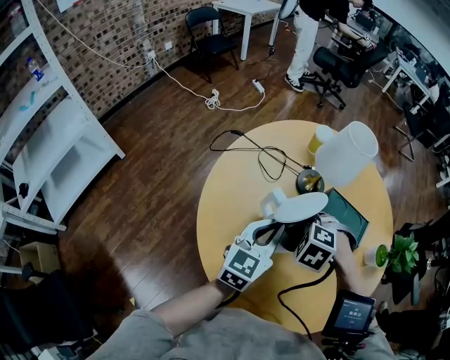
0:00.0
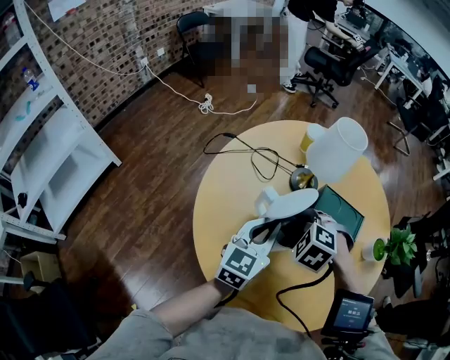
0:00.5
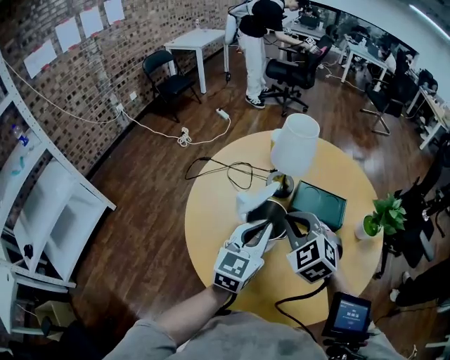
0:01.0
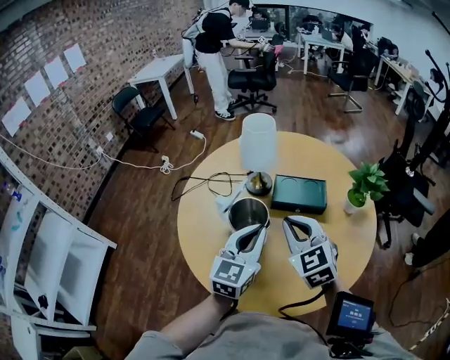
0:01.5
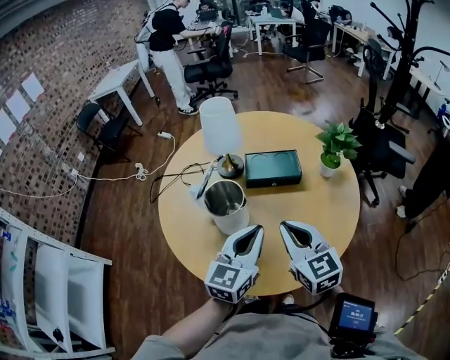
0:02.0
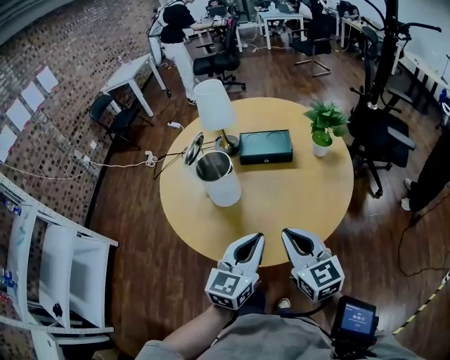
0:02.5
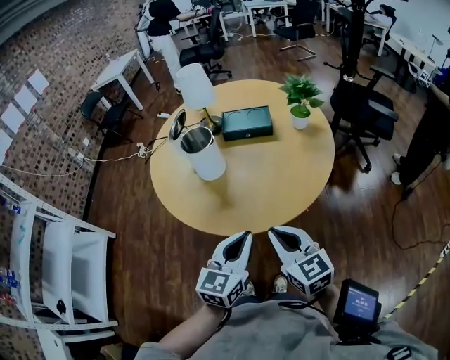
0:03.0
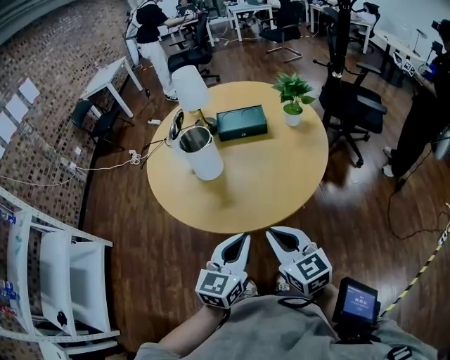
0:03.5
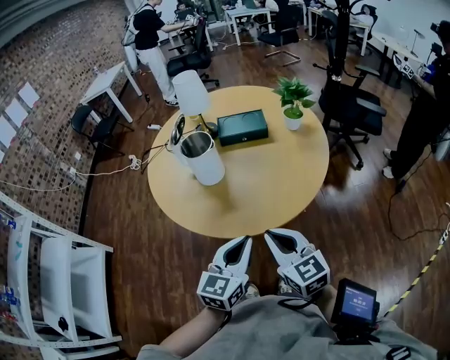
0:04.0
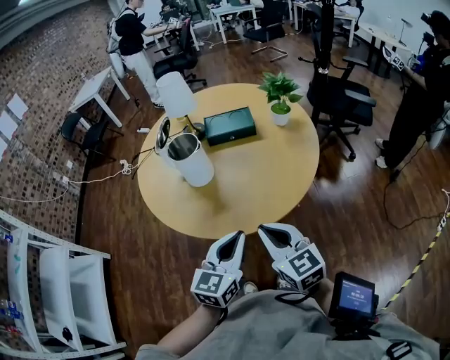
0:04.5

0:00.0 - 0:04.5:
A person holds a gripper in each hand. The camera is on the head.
0:00.0 - 0:02.0: The right gripper travels backward, upward and to the right by approximately 25 cm, points its fingers roughly 60 degrees further upward, and closes. The left gripper moves backward, to the right and upward, approximately 20 cm, and turns by about 30 degrees.
0:02.0 - 0:04.5: The grippers both shift backward by roughly 25 cm.

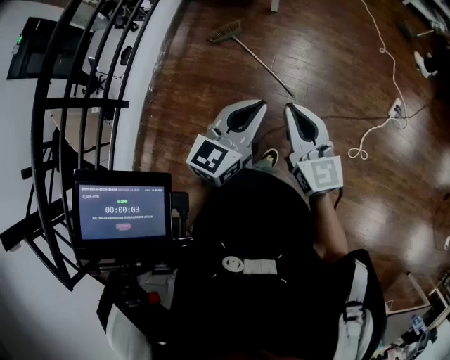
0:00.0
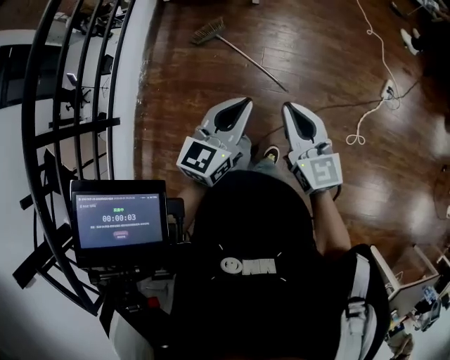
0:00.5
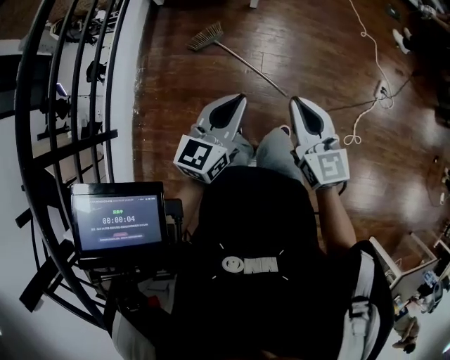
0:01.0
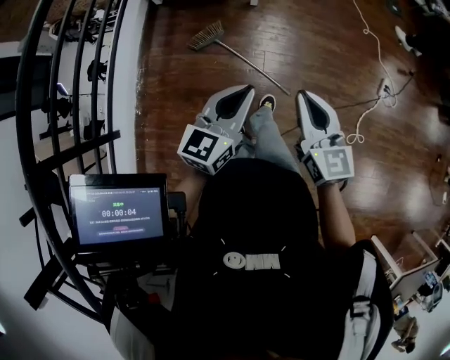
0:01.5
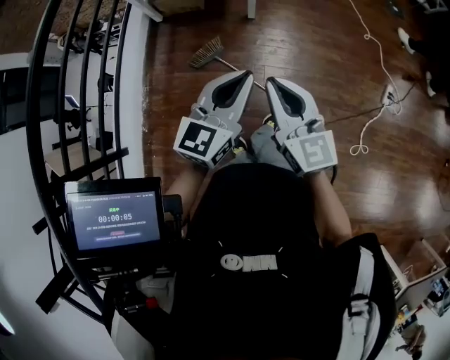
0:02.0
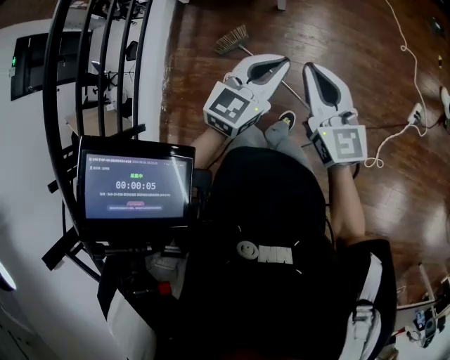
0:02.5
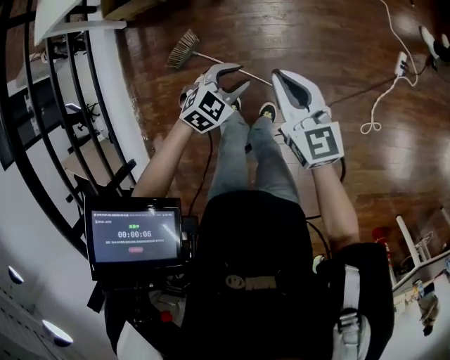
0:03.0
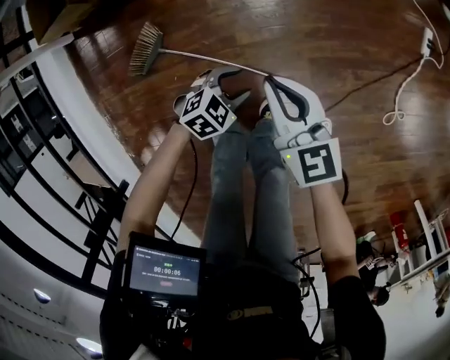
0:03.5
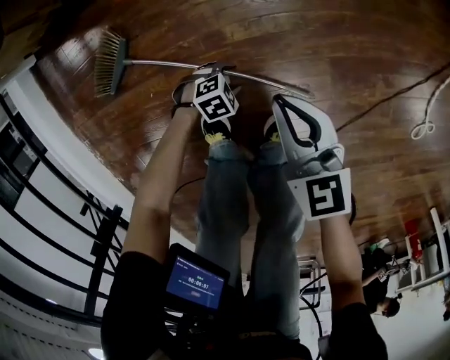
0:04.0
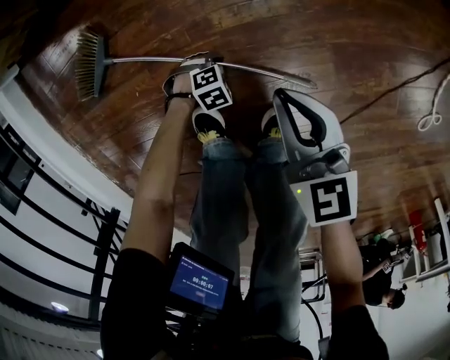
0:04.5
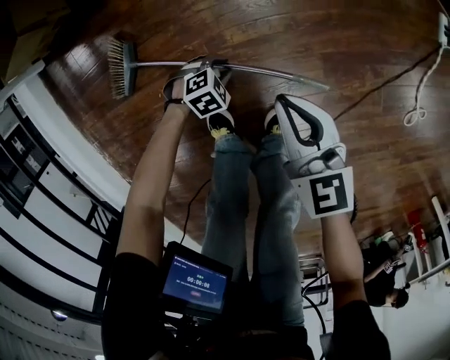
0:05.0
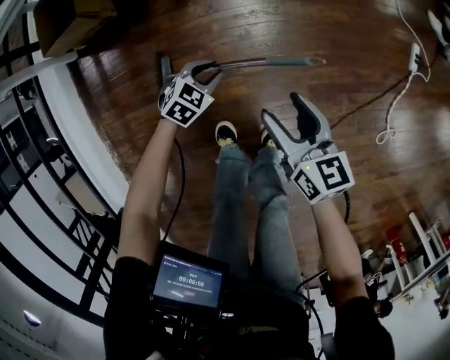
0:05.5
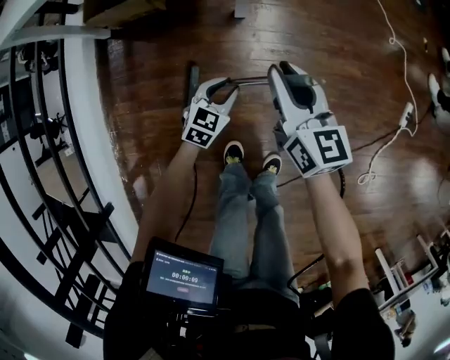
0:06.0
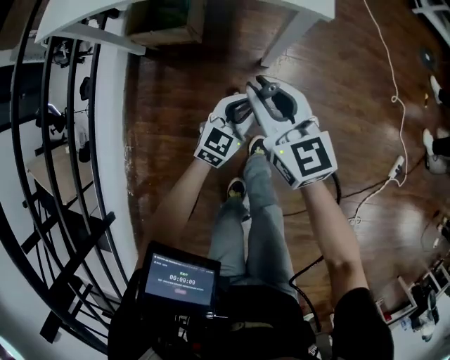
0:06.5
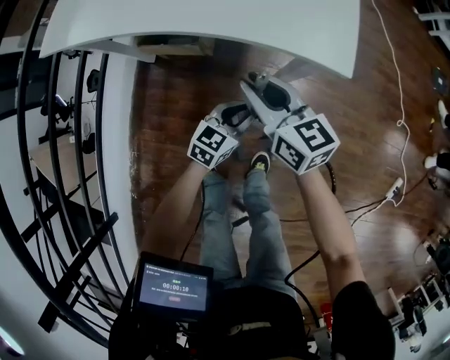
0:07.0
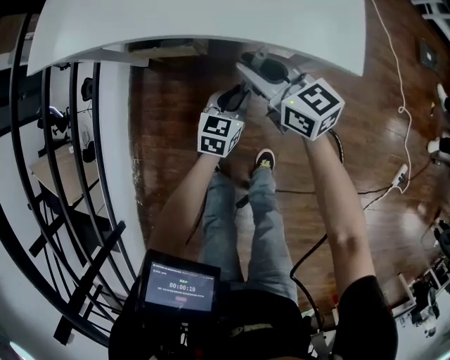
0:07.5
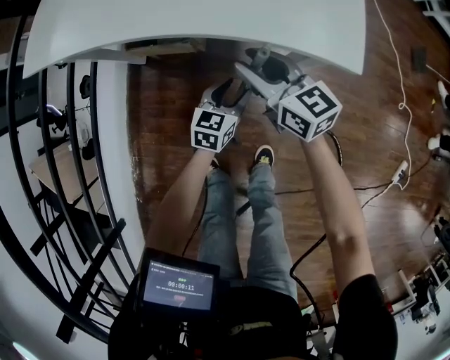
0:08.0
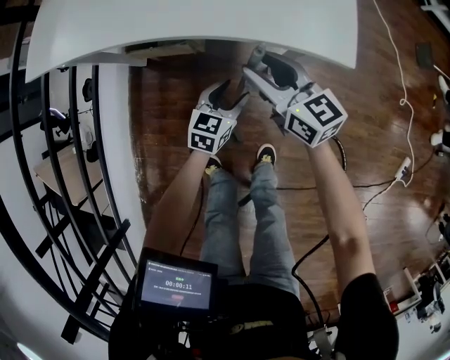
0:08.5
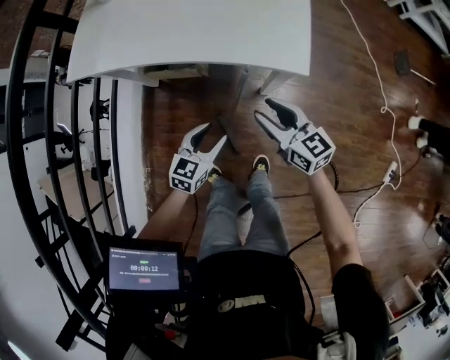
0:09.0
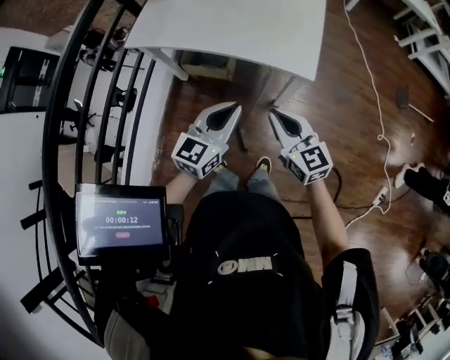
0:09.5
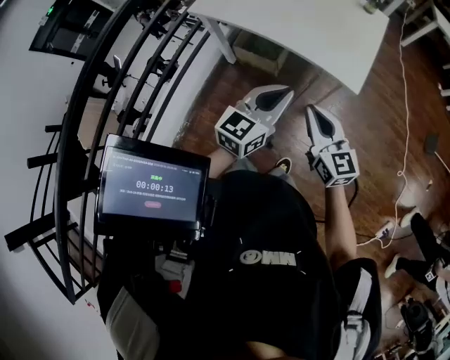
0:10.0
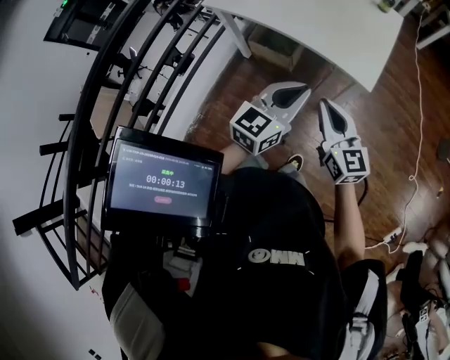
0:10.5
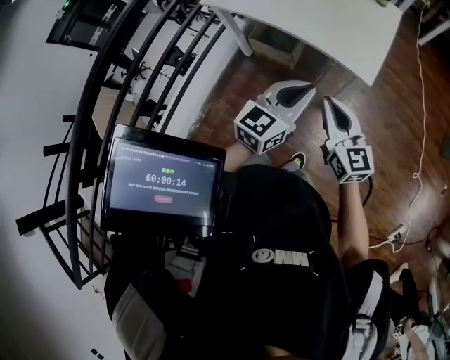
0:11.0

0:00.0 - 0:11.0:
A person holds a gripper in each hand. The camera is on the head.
0:00.0 - 0:02.0: The left gripper is displaced forward by roughly 25 cm, while the right gripper moves forward and to the left, about 30 cm.
0:02.0 - 0:03.5: Both grippers move downward, roughly 50 cm. The right gripper rotates some 30 degrees. Meanwhile the left gripper tips its fingers downward by approximately 50 degrees, and opens.
0:03.5 - 0:05.5: The right gripper reaches roughly 25 cm downward, then returns, and opens. Meanwhile the left gripper goes downward and returns, some 40 cm each way, and closes.
0:05.5 - 0:07.5: The right gripper ends up roughly 50 cm from where it was, swivels roughly 40 degrees, and closes up; the left gripper changes place by about 40 cm, and swivels some 50 degrees.
0:07.5 - 0:09.0: The right gripper shifts about 15 cm backward, upward and to the right, and opens, while the left gripper travels upward, backward and to the left by approximately 20 cm, and opens its fingers.
0:09.0 - 0:11.0: The left gripper moves upward, approximately 25 cm, turns by approximately 30 degrees, and closes up. Meanwhile the right gripper goes approximately 20 cm upward, backward and to the left, and closes.

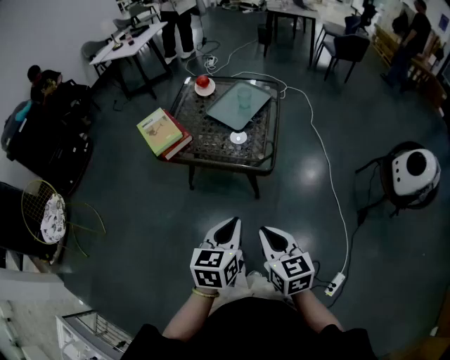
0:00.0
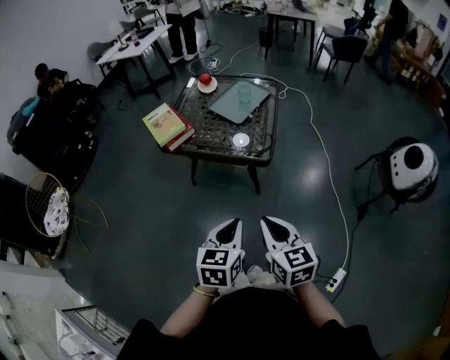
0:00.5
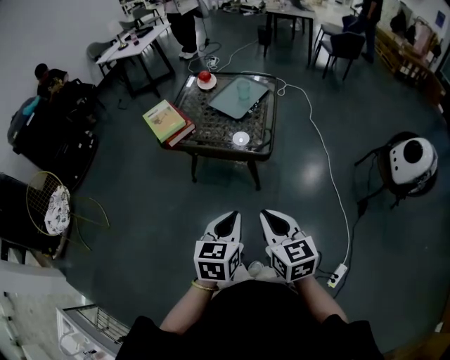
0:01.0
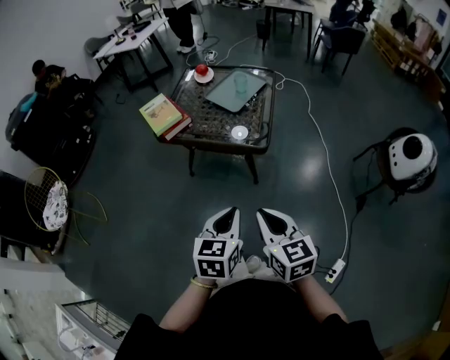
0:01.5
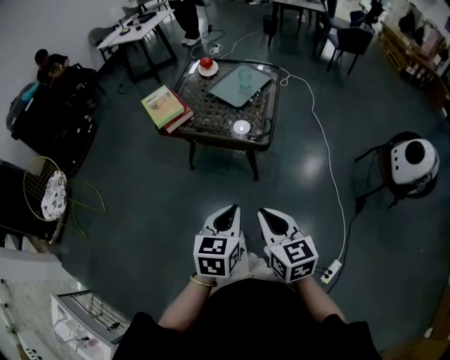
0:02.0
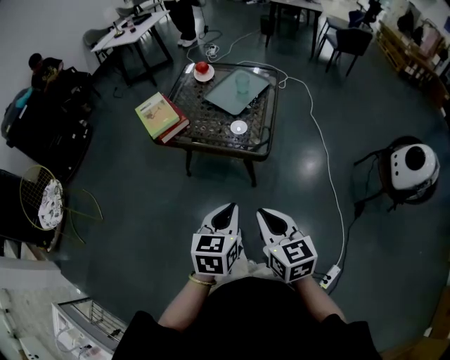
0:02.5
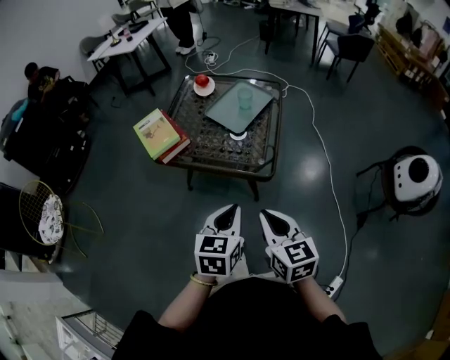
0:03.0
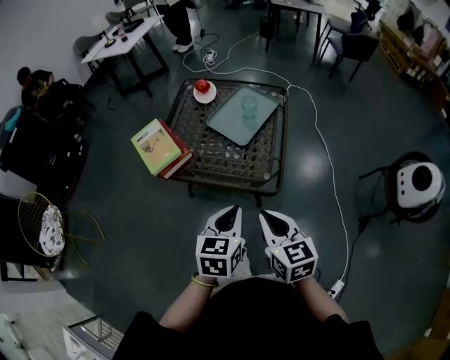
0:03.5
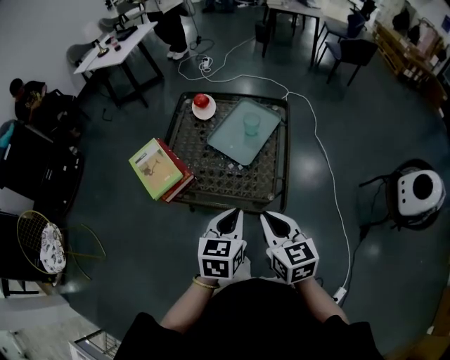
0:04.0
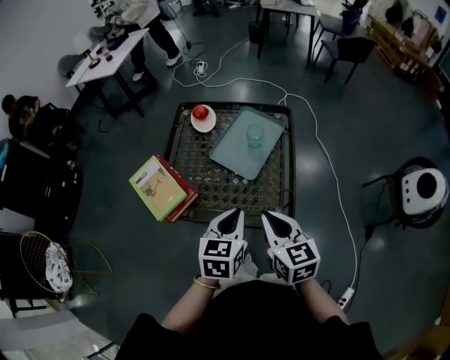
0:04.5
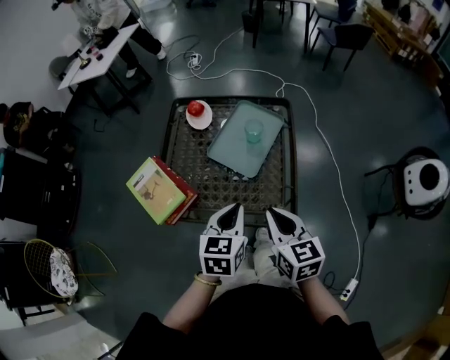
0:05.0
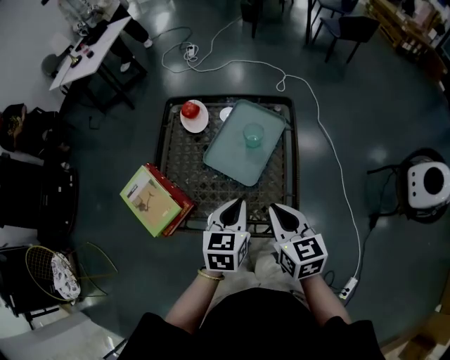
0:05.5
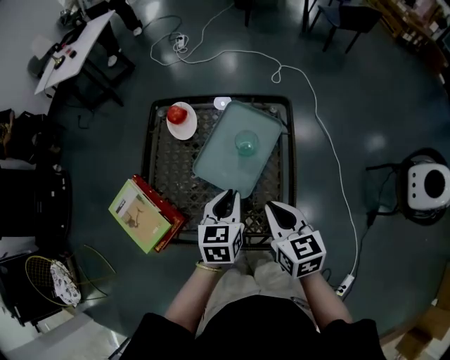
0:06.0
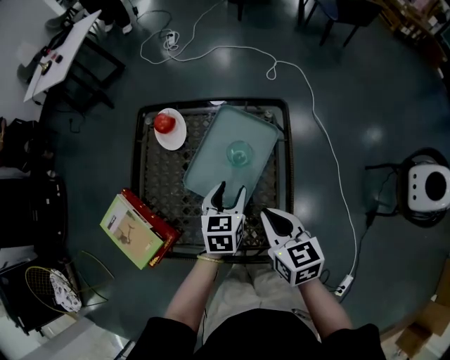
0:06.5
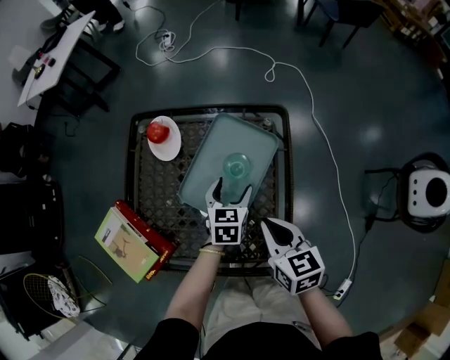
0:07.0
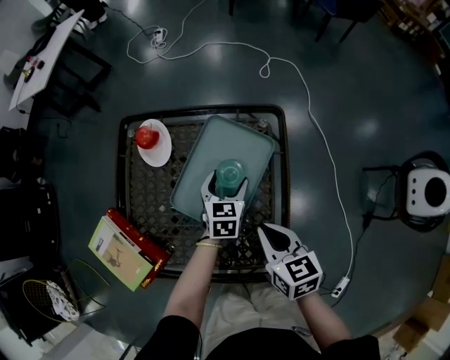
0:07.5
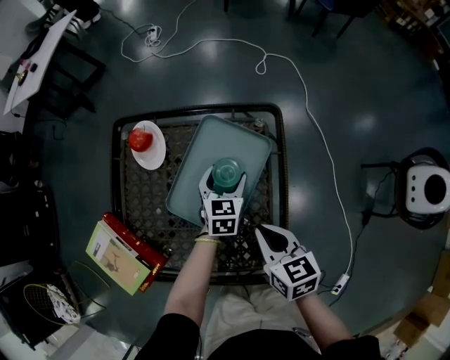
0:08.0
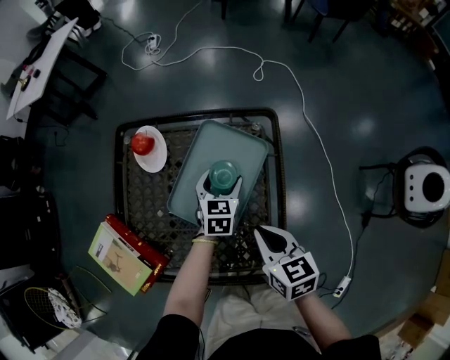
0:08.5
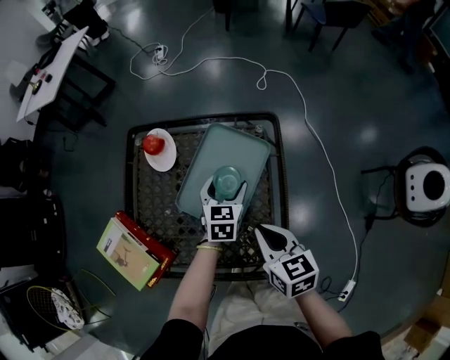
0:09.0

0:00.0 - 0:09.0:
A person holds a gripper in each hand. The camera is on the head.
0:00.0 - 0:02.0: The two grippers go about 10 cm backward.
0:02.0 - 0:04.5: The grippers both shift forward by roughly 40 cm.
0:04.5 - 0:07.0: The left gripper moves forward and downward, some 35 cm, and opens its fingers, while the right gripper moves forward and downward, about 25 cm.

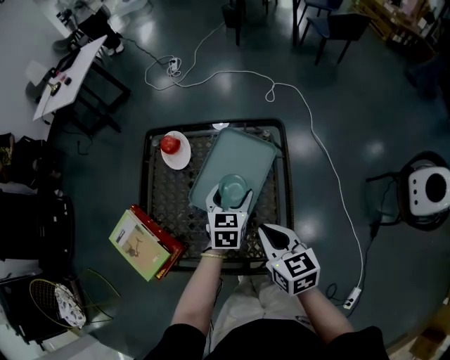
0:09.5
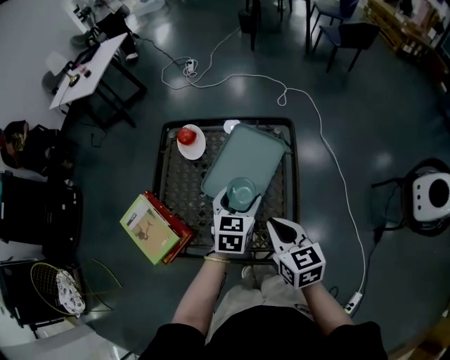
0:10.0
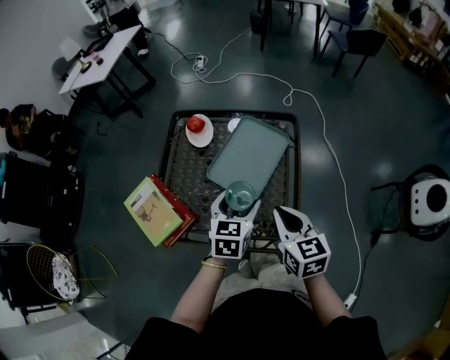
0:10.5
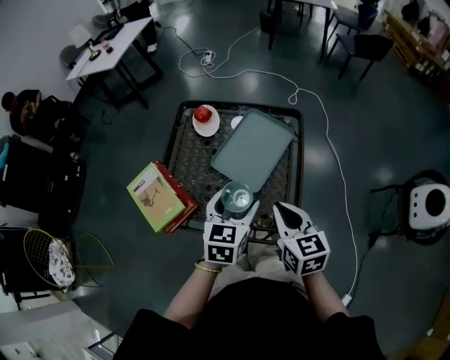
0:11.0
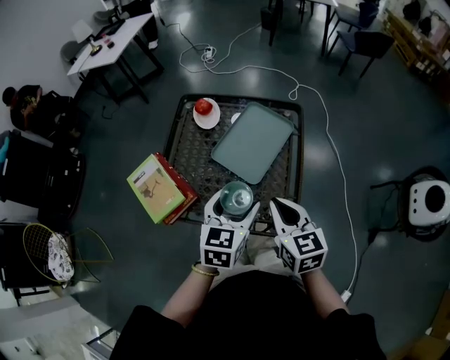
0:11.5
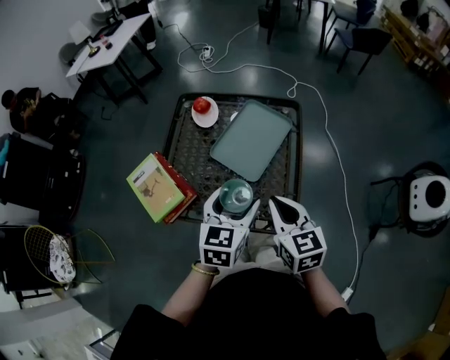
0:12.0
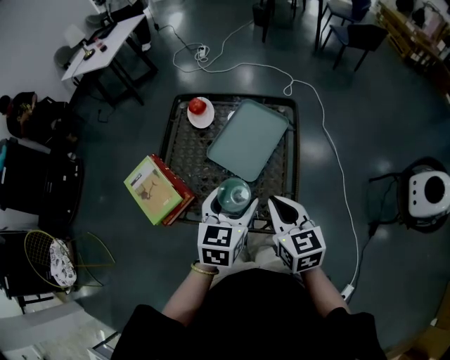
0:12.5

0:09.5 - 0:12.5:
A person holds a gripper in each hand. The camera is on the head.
0:09.5 - 0:11.0: The left gripper shifts roughly 20 cm backward and upward; the right gripper is displaced backward and upward by approximately 10 cm.
0:11.0 - 0:12.5: The grippers stay close to where they were, moving slightly.
